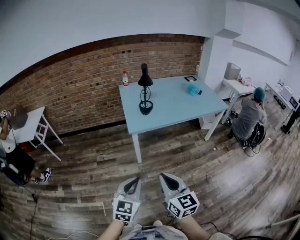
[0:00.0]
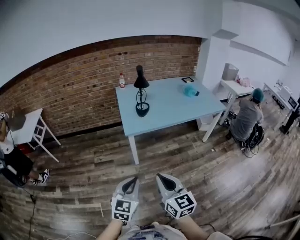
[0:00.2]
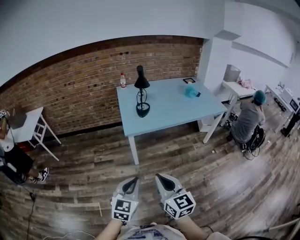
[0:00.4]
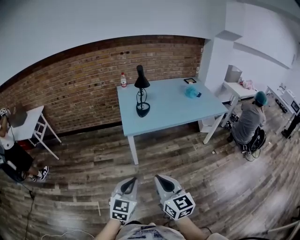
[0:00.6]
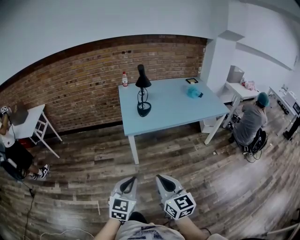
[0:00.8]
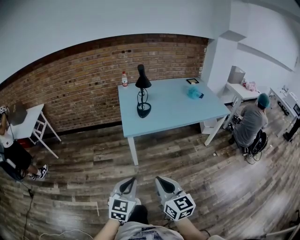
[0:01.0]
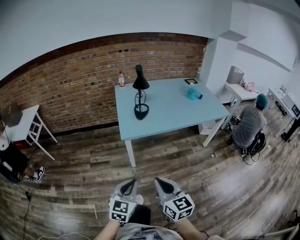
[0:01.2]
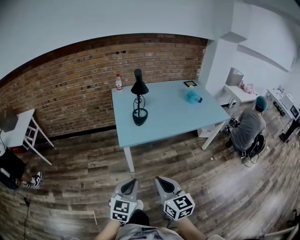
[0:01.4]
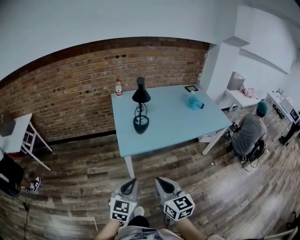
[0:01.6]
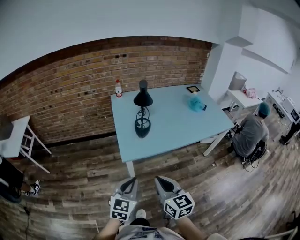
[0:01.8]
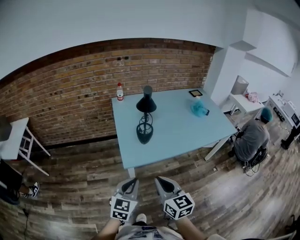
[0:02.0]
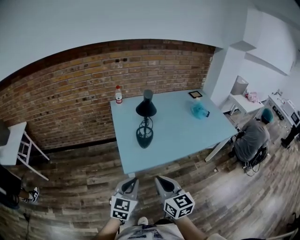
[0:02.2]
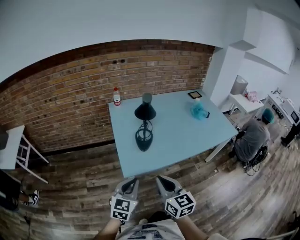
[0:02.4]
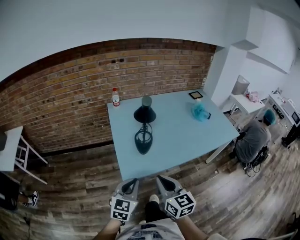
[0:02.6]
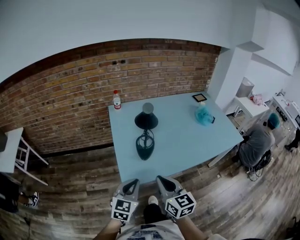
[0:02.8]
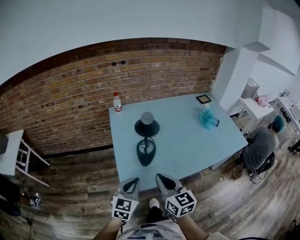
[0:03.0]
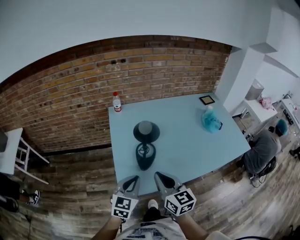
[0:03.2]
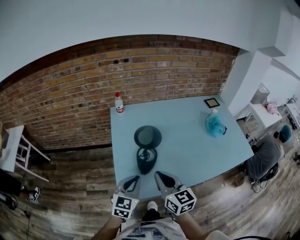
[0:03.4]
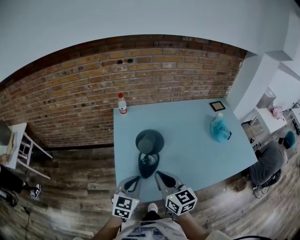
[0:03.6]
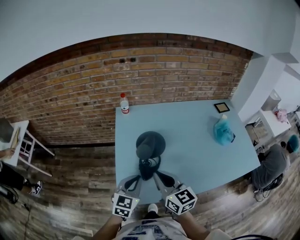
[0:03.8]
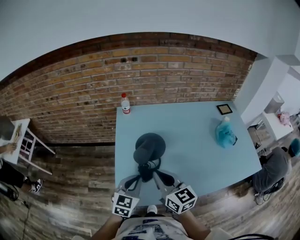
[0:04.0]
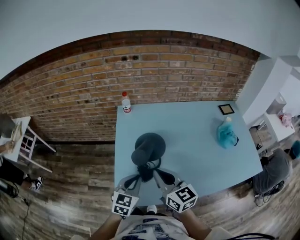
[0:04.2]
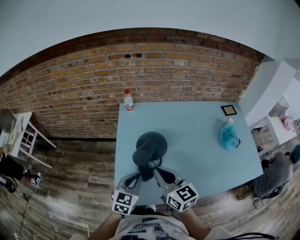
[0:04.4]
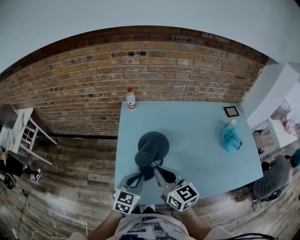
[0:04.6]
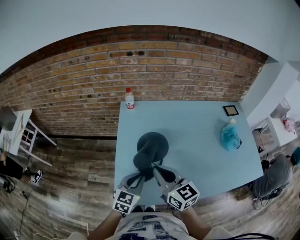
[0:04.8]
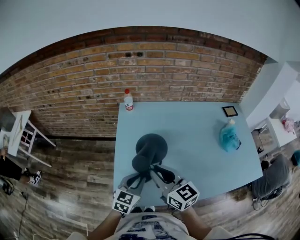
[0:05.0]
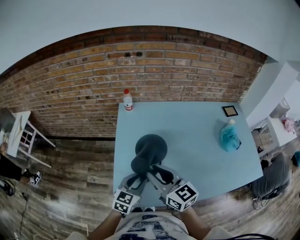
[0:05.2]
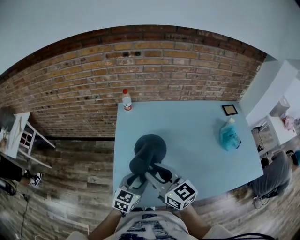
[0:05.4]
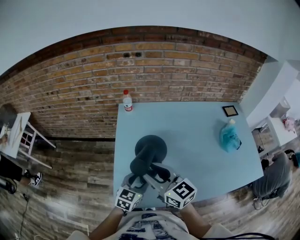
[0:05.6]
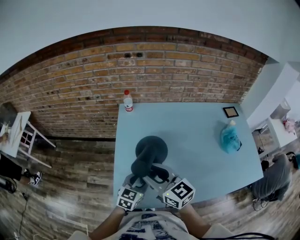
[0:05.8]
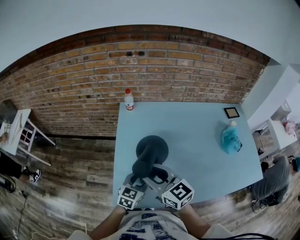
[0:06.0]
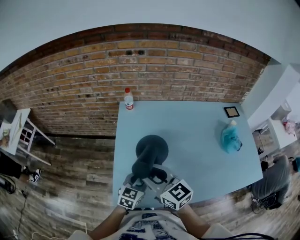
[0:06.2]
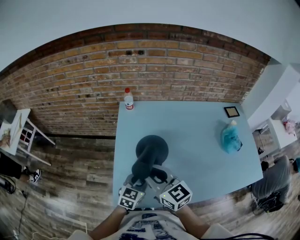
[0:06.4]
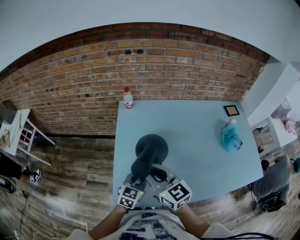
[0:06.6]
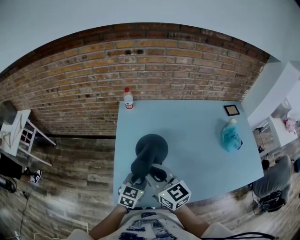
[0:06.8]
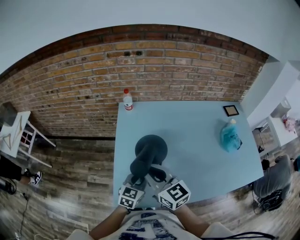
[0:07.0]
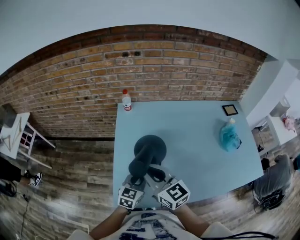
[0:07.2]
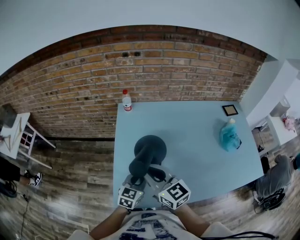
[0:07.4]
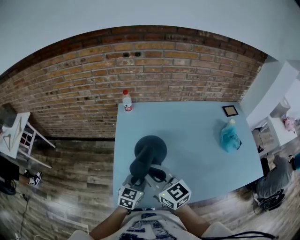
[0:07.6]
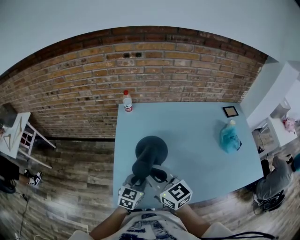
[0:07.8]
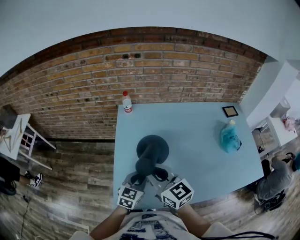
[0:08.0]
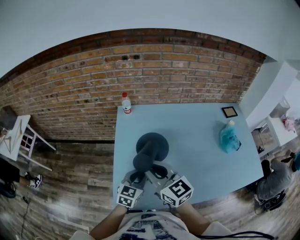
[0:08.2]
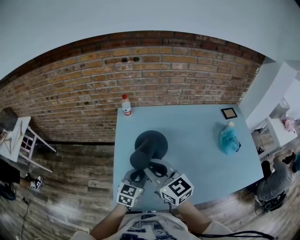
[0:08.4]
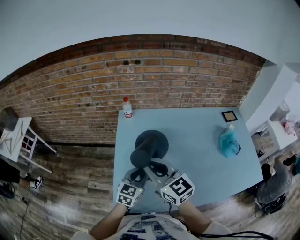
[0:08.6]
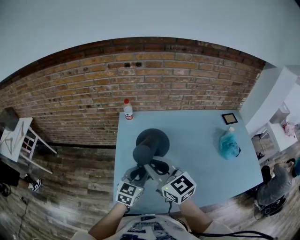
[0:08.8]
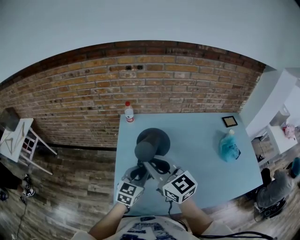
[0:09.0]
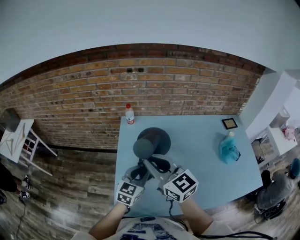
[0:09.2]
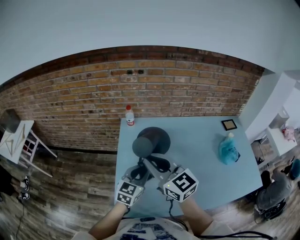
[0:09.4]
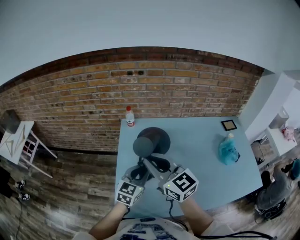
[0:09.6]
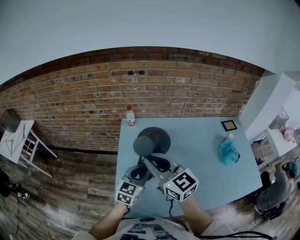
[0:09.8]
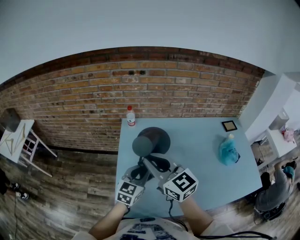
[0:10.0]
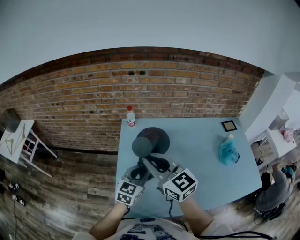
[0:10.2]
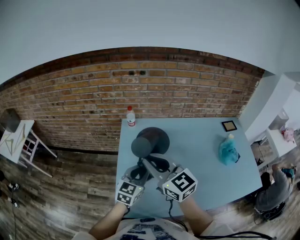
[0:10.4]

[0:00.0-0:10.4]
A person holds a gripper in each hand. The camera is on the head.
0:00.0 to 0:01.4: The grippers both shift forward by roughly 15 cm.
0:01.4 to 0:03.0: Both grippers move forward, roughly 40 cm.
0:03.0 to 0:04.4: The two grippers go approximately 15 cm forward.
0:04.4 to 0:06.0: The right gripper changes place by about 5 cm, and opens. The left gripper travels downward by roughly 5 cm, and opens up.
0:06.0 to 0:07.4: The right gripper closes, while the left gripper closes its fingers.
0:07.4 to 0:09.0: The left gripper is displaced upward and forward by approximately 10 cm, while the right gripper shifts some 10 cm upward.
0:09.0 to 0:10.4: The grippers stay close to where they were, moving slightly.

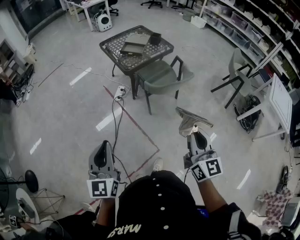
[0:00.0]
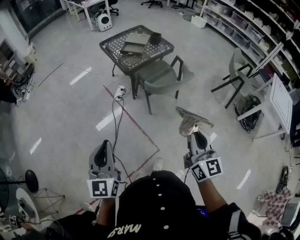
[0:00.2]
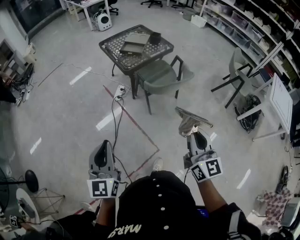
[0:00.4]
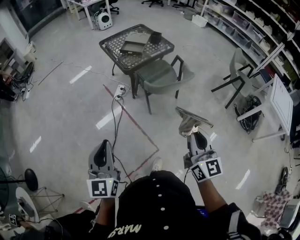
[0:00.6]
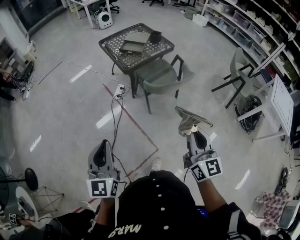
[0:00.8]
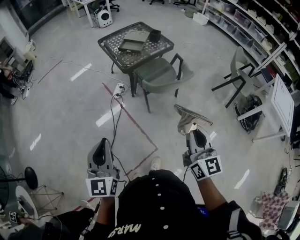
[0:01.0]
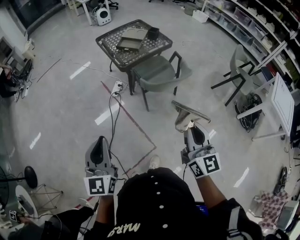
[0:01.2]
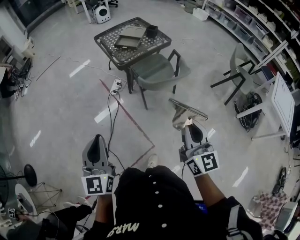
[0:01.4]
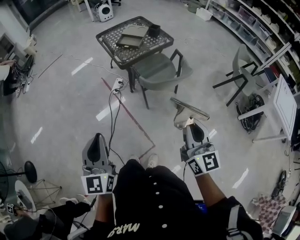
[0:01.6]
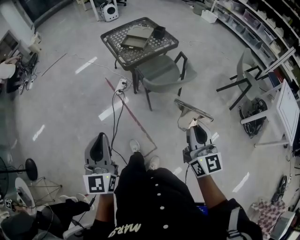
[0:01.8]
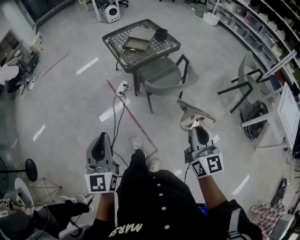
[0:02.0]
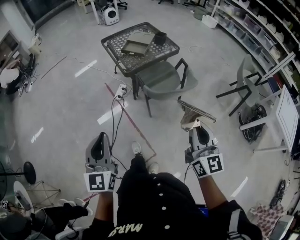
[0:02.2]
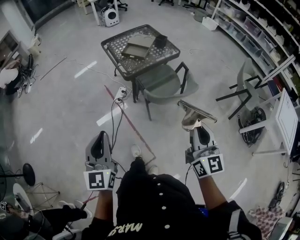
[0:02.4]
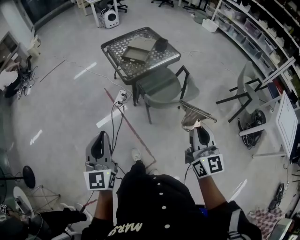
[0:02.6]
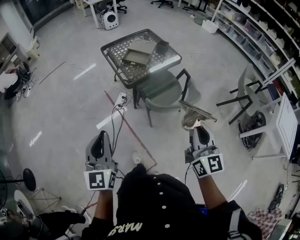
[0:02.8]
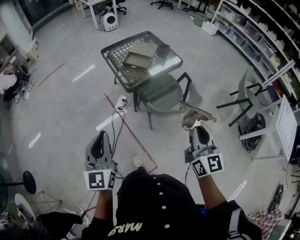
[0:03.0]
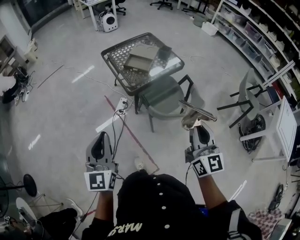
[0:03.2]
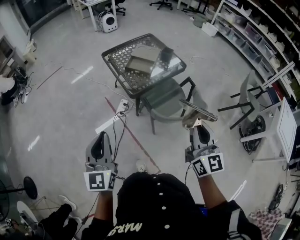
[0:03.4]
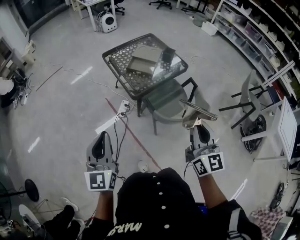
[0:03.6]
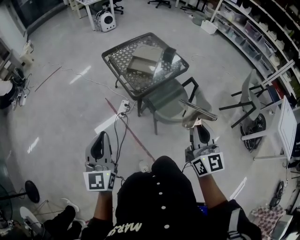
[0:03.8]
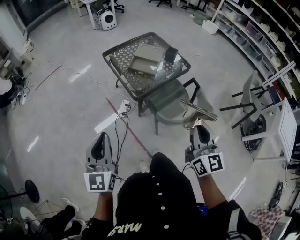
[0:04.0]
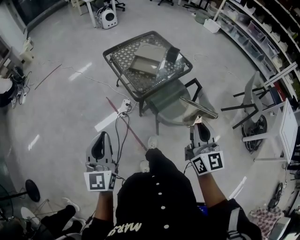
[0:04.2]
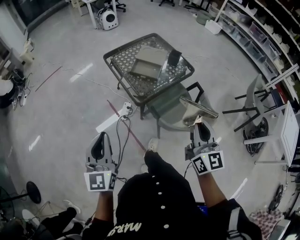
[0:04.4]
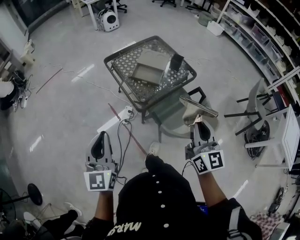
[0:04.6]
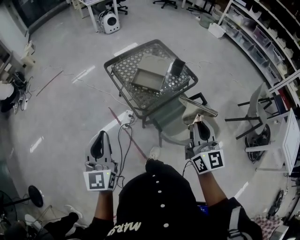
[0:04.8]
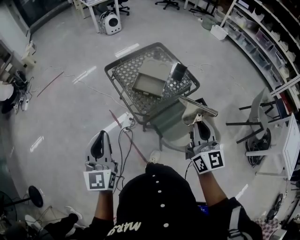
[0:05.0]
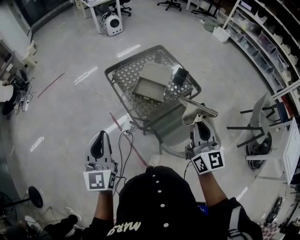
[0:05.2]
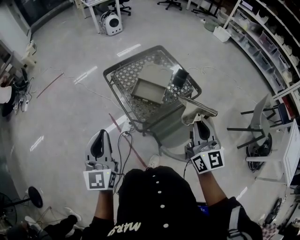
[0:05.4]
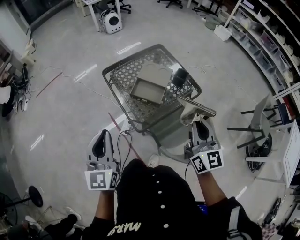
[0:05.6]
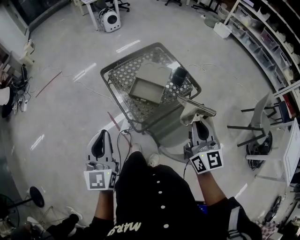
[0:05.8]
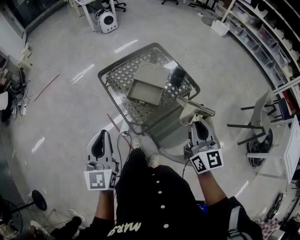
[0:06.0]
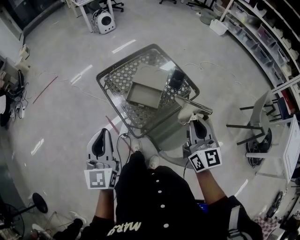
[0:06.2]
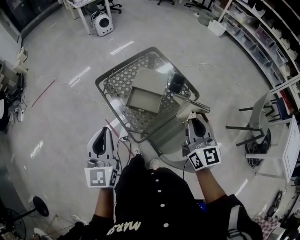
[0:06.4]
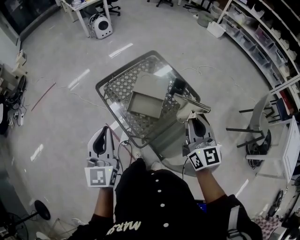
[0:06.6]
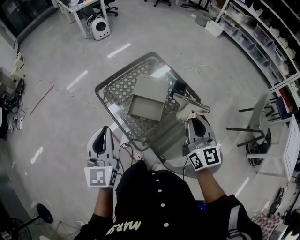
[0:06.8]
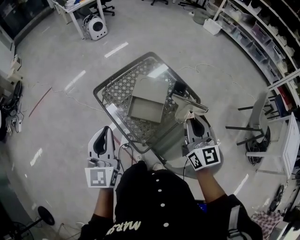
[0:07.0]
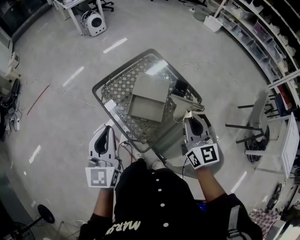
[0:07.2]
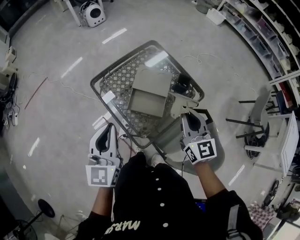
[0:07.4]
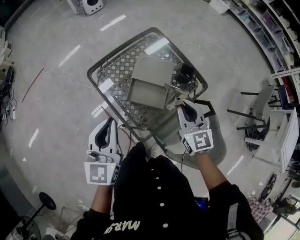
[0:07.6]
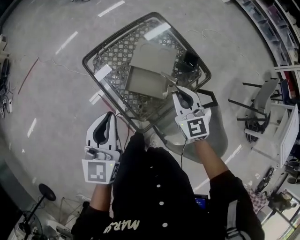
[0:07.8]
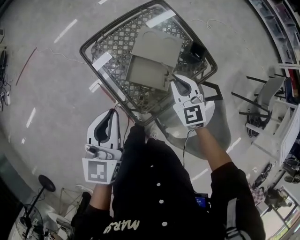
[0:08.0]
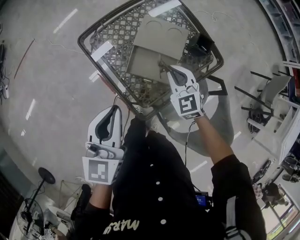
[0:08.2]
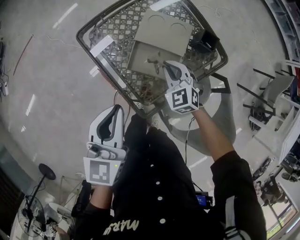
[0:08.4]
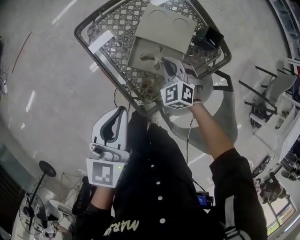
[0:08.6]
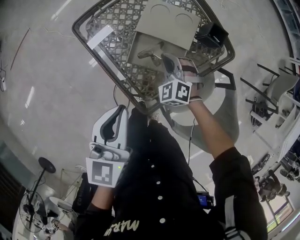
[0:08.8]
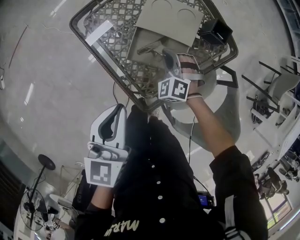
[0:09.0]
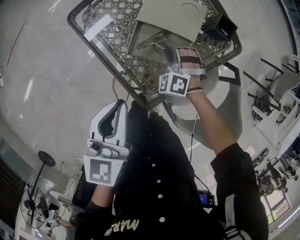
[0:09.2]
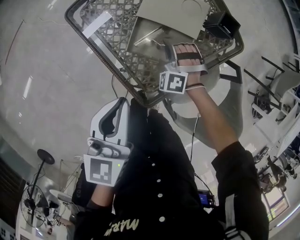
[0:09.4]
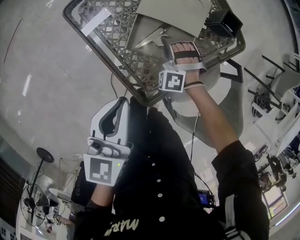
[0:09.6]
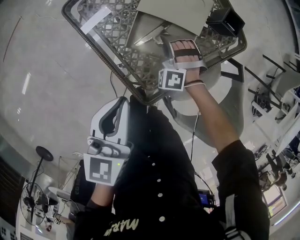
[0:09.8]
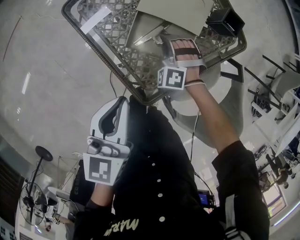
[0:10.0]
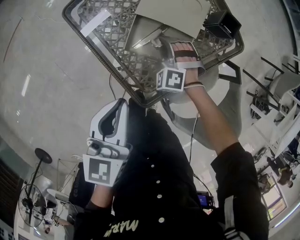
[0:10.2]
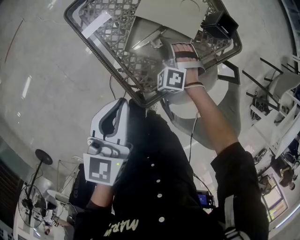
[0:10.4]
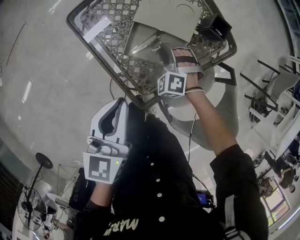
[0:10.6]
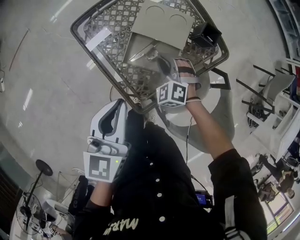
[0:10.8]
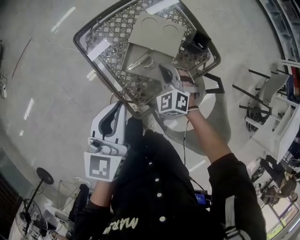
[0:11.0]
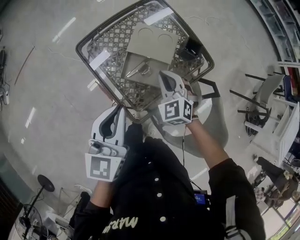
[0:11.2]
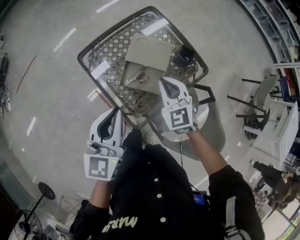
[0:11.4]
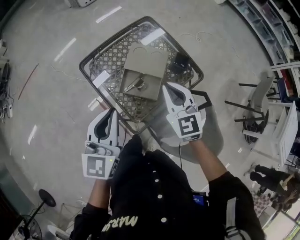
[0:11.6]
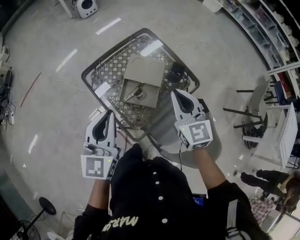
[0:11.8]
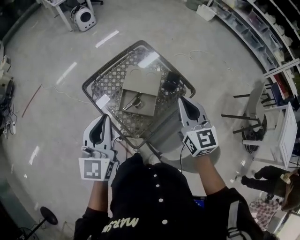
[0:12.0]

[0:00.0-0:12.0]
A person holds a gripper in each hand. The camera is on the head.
0:00.0 to 0:01.6: The left gripper is displaced to the right and forward by approximately 10 cm; the right gripper shifts roughly 10 cm forward and to the right.
0:01.6 to 0:03.0: The grippers both shift forward by roughly 20 cm.
0:03.0 to 0:04.4: The two grippers go approximately 20 cm forward and to the left.
0:04.4 to 0:06.0: Both grippers travel together forward, about 25 cm.
0:06.0 to 0:07.6: The left gripper heads forward, covering approximately 20 cm, while the right gripper is displaced forward, downward and to the left by some 25 cm, and changes its angle by about 20 degrees.
0:07.6 to 0:09.0: The left gripper heads downward, covering some 15 cm, and swivels some 20 degrees. Meanwhile the right gripper heads downward, covering roughly 30 cm, and rolls counterclockwise, seen from behind, by some 50 degrees.
0:09.0 to 0:10.4: The right gripper opens its fingers.
0:10.4 to 0:12.0: The left gripper goes roughly 20 cm upward, and turns by about 30 degrees. The right gripper is displaced upward by roughly 40 cm, rolls clockwise, seen from behind, by about 70 degrees, and closes.

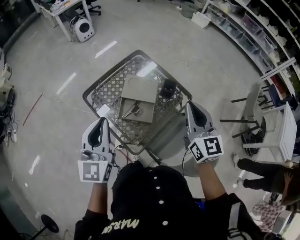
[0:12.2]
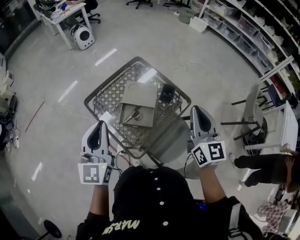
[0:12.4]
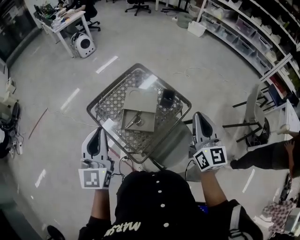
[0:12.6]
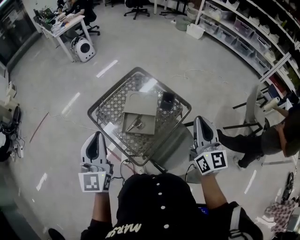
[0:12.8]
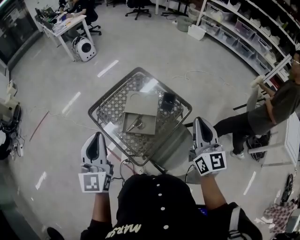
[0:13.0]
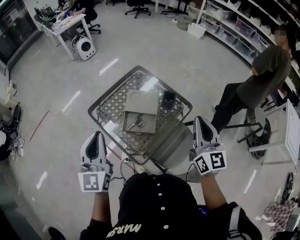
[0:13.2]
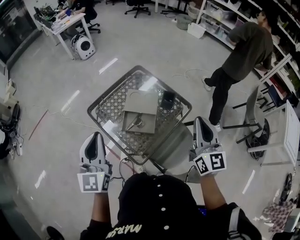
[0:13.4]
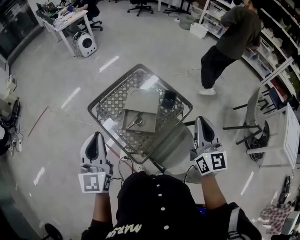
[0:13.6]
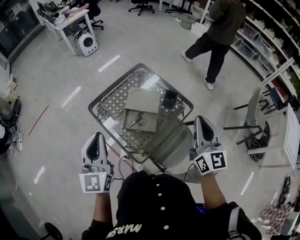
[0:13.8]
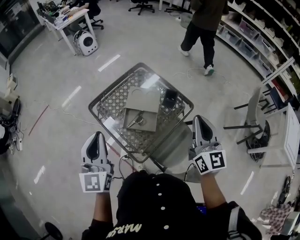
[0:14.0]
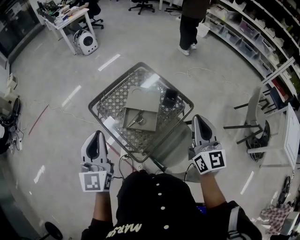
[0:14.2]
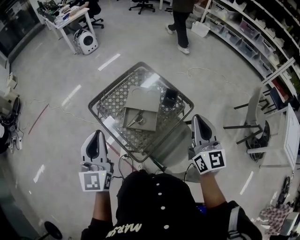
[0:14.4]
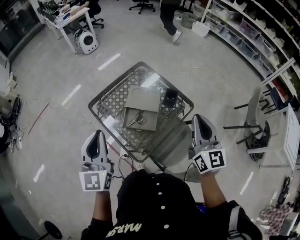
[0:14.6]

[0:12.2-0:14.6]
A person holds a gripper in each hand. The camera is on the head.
0:12.2 to 0:13.4: The right gripper changes place by about 5 cm.
0:13.4 to 0:14.6: The grippers stay close to where they were, moving slightly.
